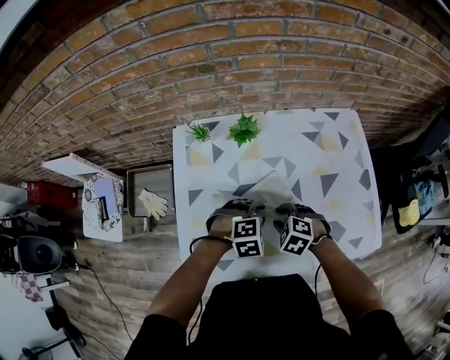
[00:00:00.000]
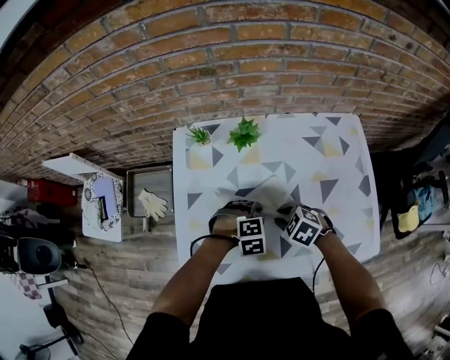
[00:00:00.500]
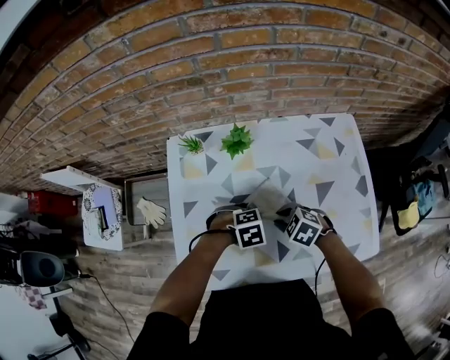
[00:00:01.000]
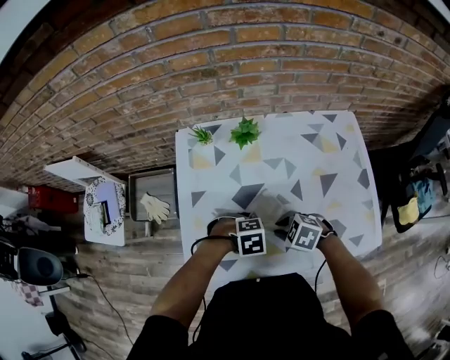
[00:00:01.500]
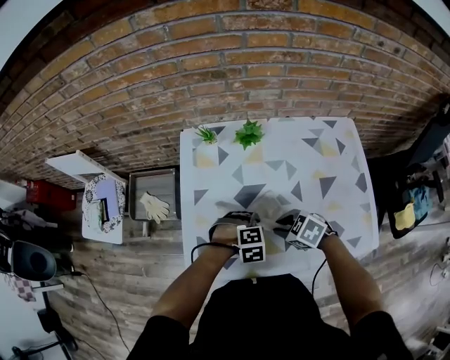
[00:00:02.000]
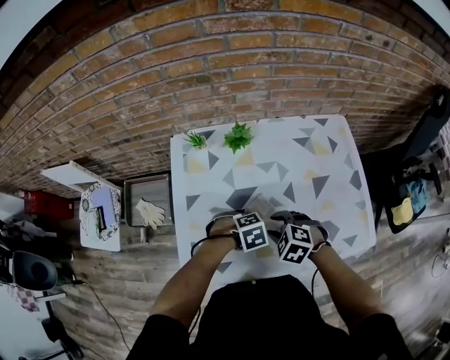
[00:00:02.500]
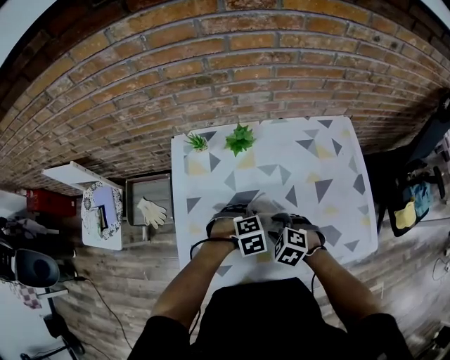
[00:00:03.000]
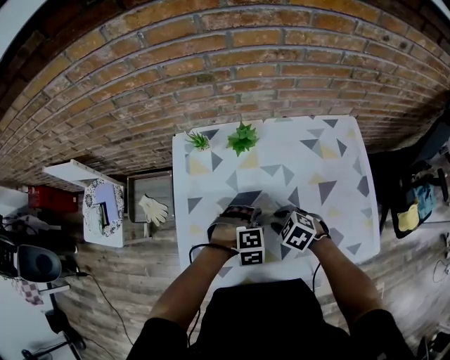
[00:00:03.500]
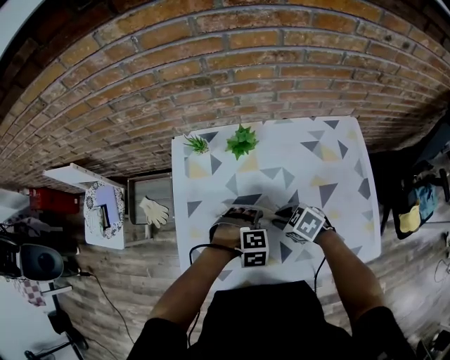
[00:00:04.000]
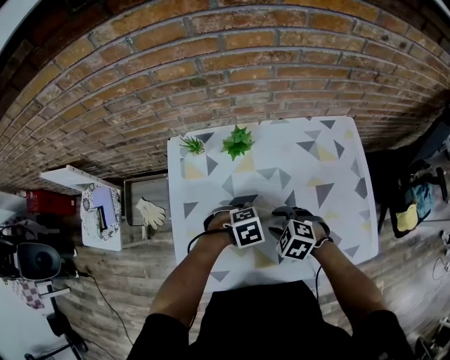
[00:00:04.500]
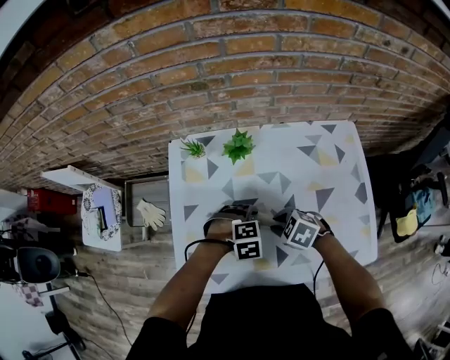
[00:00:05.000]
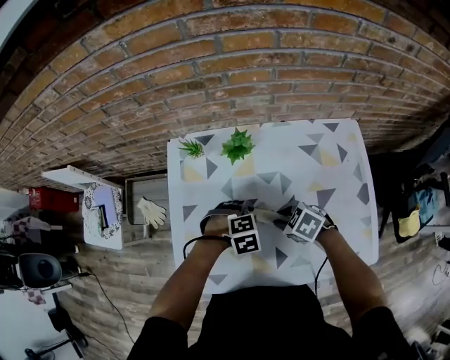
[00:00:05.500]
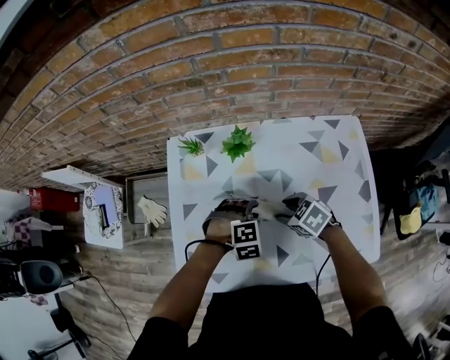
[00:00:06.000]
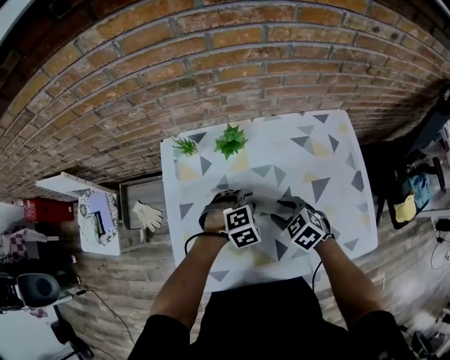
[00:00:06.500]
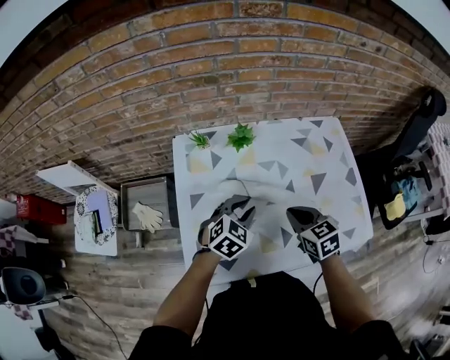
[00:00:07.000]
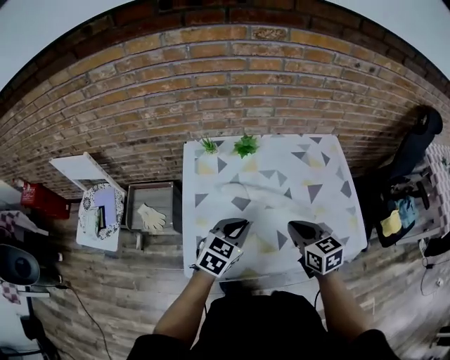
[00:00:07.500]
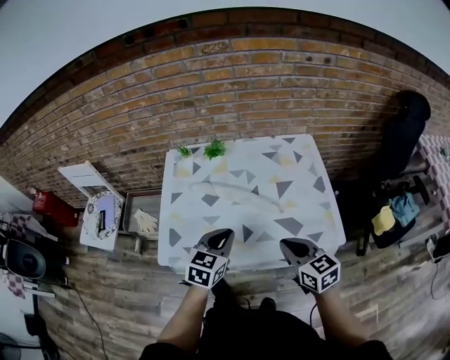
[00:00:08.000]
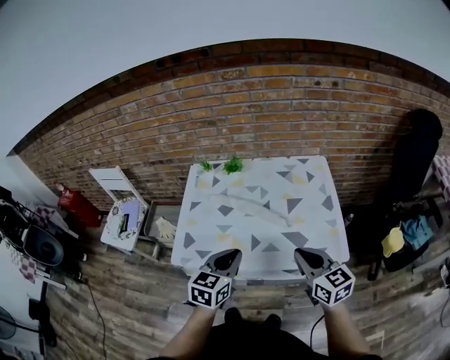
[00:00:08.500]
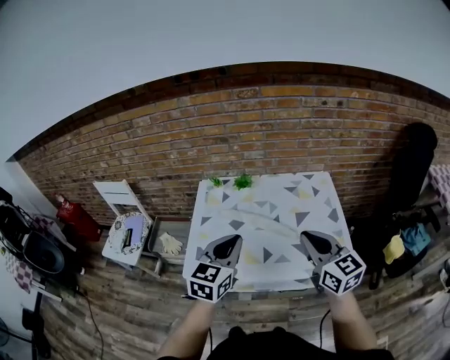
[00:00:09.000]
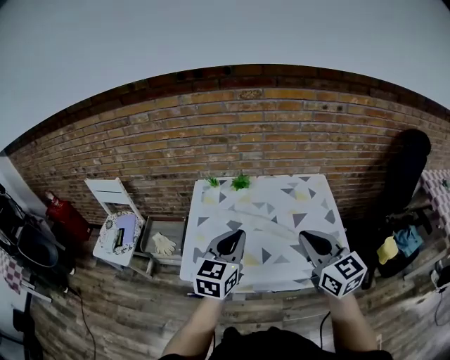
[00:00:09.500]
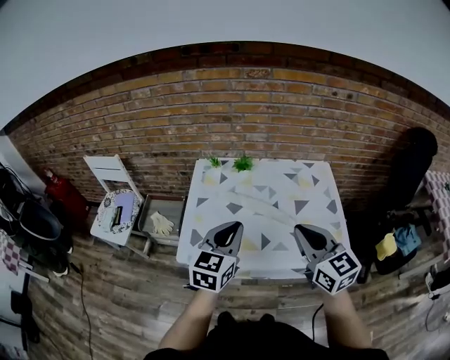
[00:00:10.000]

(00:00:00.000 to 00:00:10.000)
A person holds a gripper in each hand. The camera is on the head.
00:00:00.000 - 00:00:02.000: The right gripper rotates some 20 degrees. Meanwhile the left gripper ends up about 5 cm from where it was.
00:00:02.000 - 00:00:04.000: The left gripper opens up. Meanwhile the right gripper moves approximately 5 cm, and opens, then closes again.
00:00:04.000 - 00:00:06.000: The right gripper opens its fingers. Meanwhile the left gripper moves about 5 cm.
00:00:06.000 - 00:00:08.000: The left gripper shifts by roughly 25 cm, twists about 60 degrees counterclockwise, seen from behind, and closes its fingers. The right gripper changes place by about 30 cm, tilts its fingers approximately 30 degrees upward, and closes.
00:00:08.000 - 00:00:10.000: The right gripper shifts some 15 cm upward; the left gripper moves upward and to the left, some 15 cm.

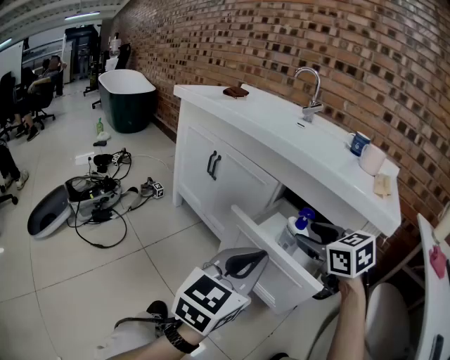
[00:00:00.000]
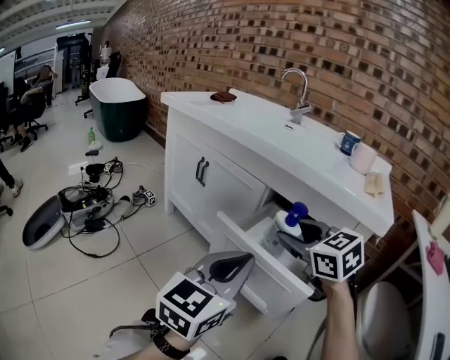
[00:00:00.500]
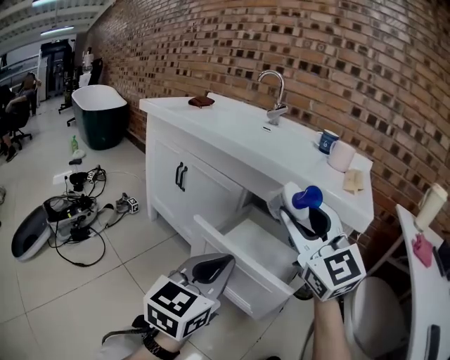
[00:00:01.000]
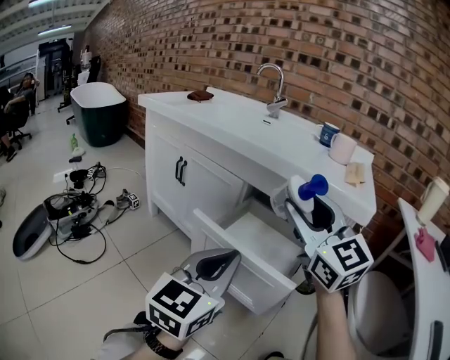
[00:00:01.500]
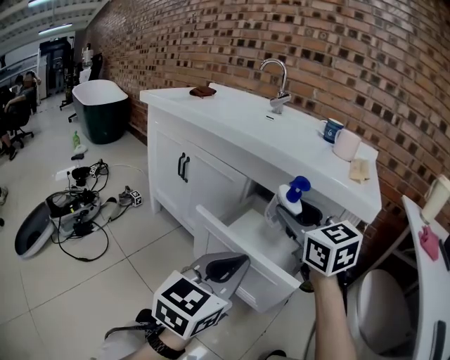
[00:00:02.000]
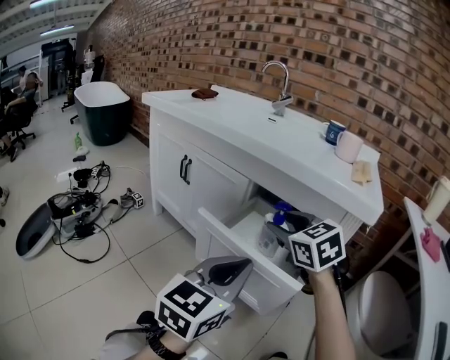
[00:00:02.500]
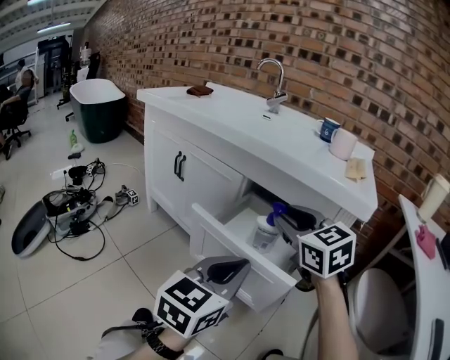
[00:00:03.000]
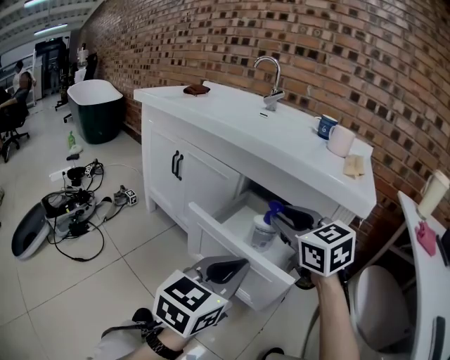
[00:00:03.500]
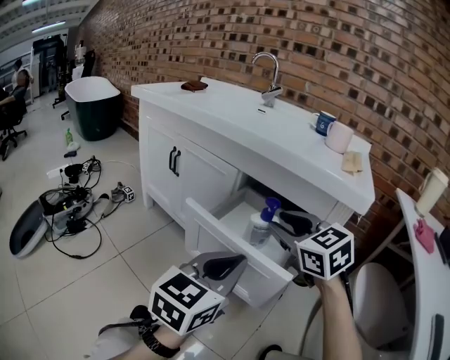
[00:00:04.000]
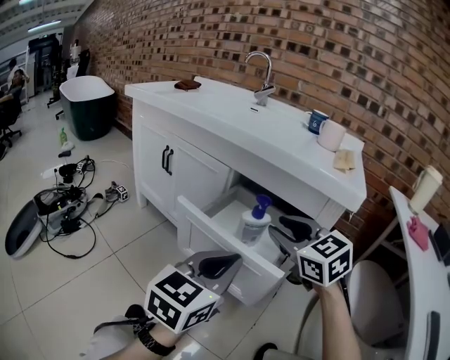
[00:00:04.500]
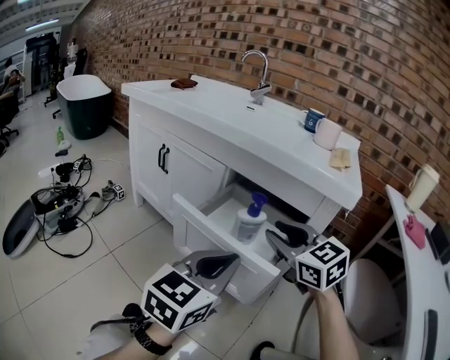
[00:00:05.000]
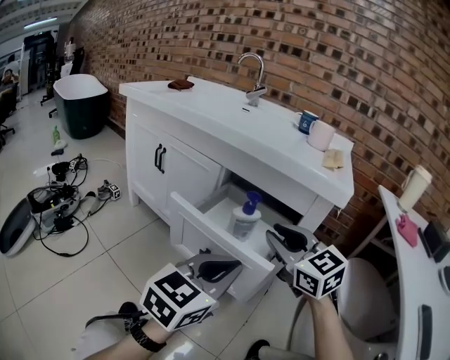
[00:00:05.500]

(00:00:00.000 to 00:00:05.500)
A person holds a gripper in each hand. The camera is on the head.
00:00:00.000 - 00:00:02.000: The right gripper heads upward, covering roughly 5 cm, and rotates some 20 degrees.
00:00:03.500 - 00:00:05.500: The right gripper moves backward, some 5 cm.

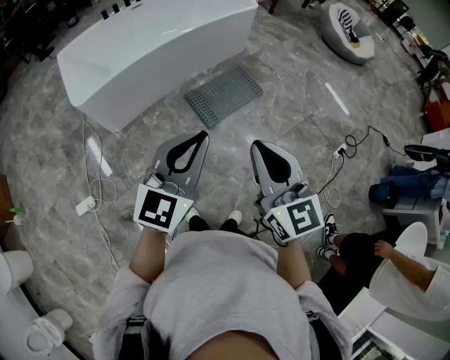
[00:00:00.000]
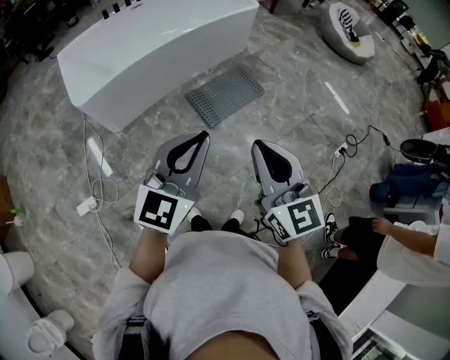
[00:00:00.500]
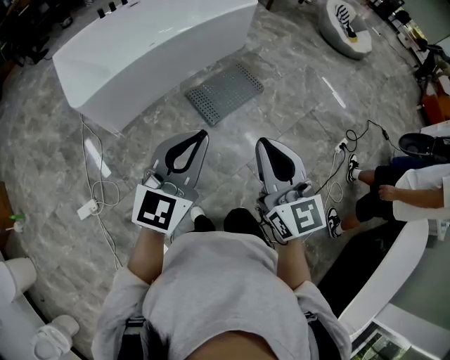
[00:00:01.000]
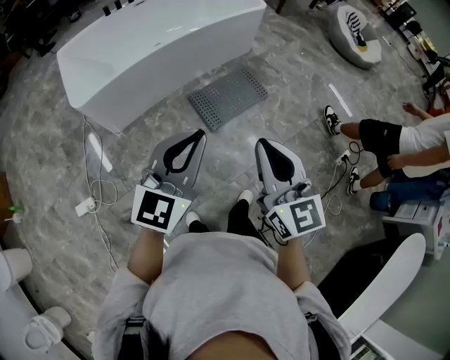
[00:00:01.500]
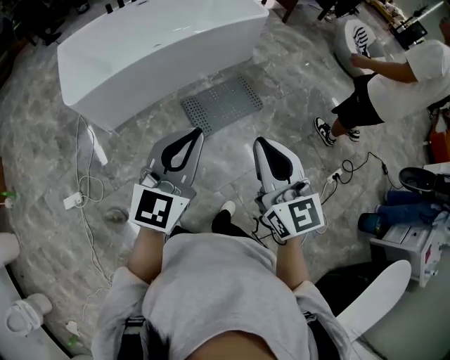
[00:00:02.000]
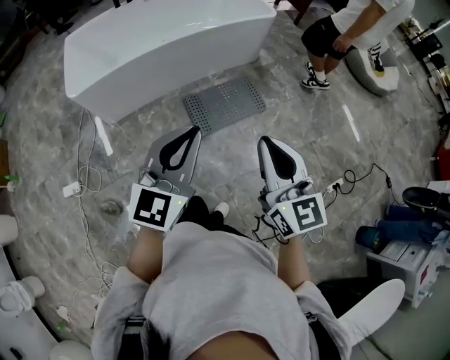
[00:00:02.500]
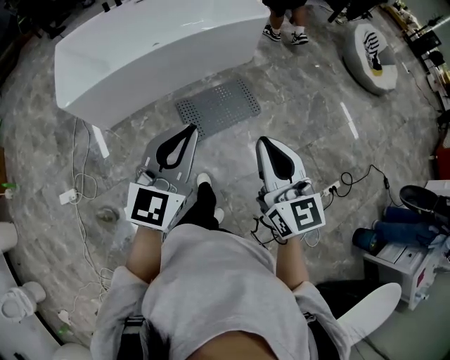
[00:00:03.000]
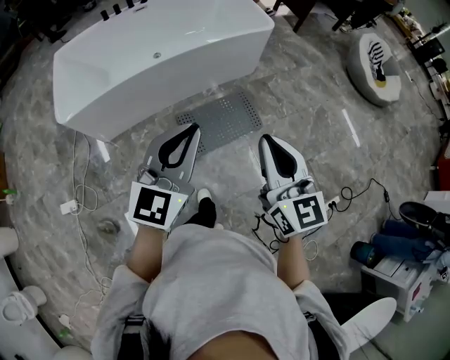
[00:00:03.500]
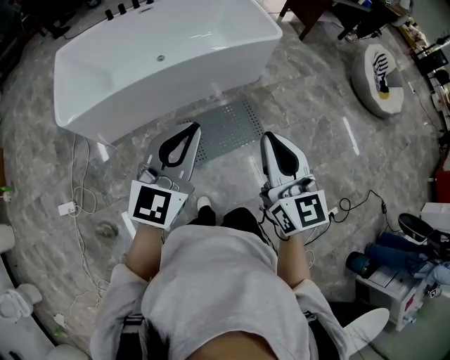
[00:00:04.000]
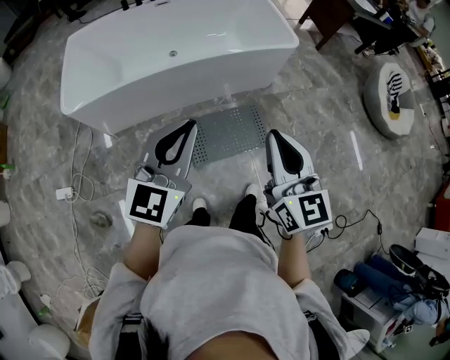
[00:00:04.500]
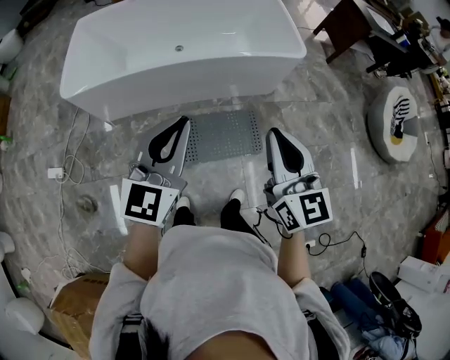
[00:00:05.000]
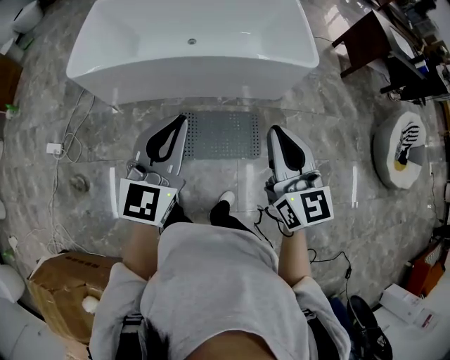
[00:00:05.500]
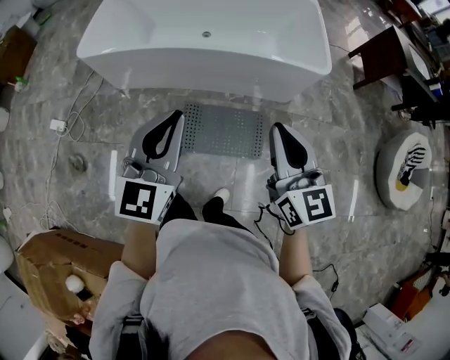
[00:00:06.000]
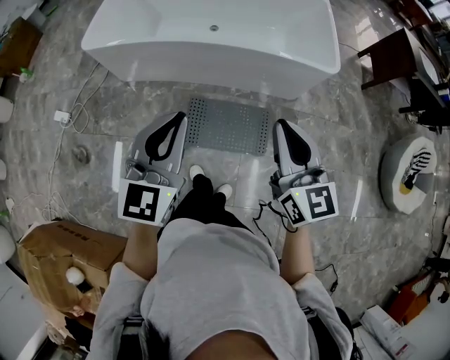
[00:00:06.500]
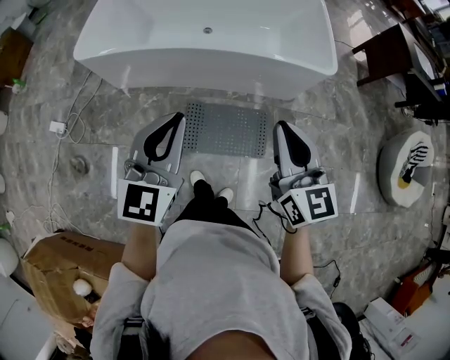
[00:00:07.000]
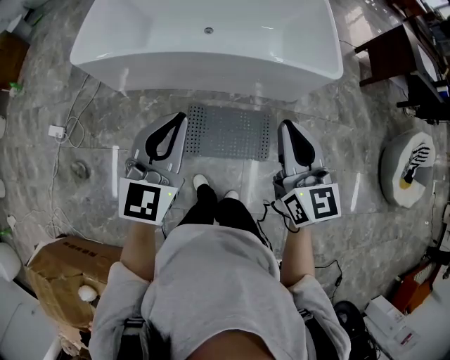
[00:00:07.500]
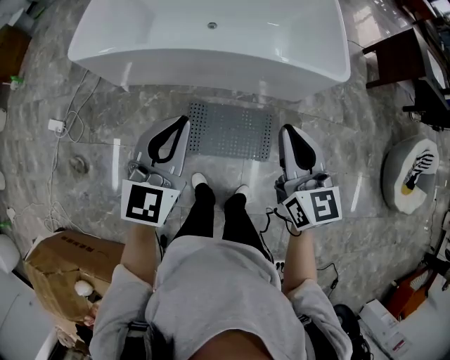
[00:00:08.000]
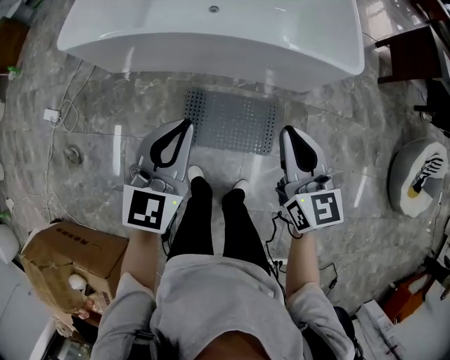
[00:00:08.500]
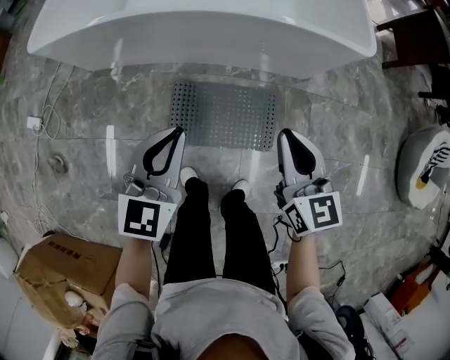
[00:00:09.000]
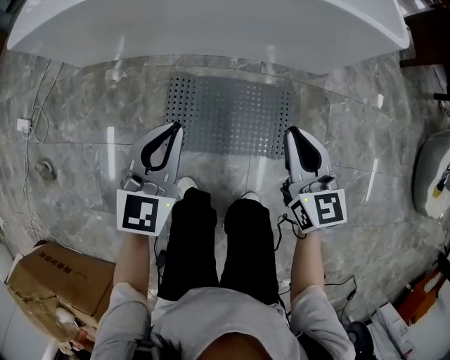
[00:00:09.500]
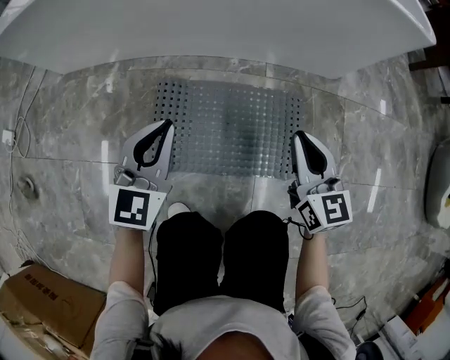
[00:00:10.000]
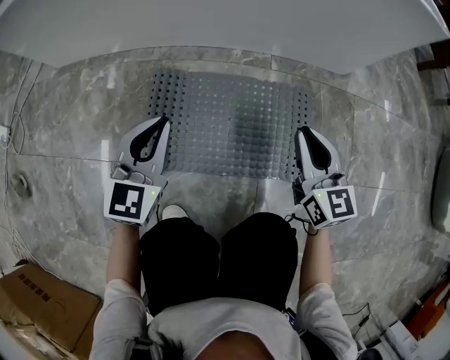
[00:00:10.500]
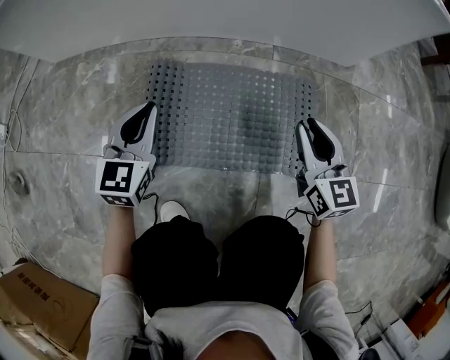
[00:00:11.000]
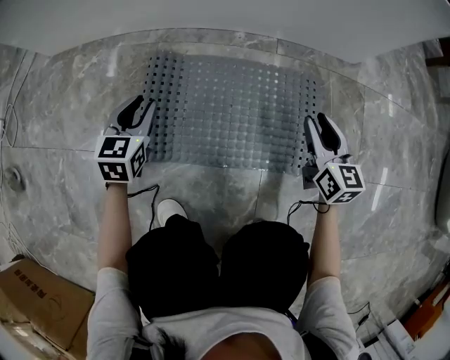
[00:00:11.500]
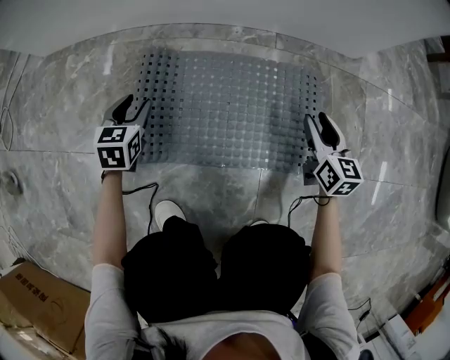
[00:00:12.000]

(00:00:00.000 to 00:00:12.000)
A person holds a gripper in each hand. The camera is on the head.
00:00:00.000 - 00:00:02.000: The grippers both shift forward and to the right by about 15 cm.
00:00:02.000 - 00:00:04.000: The grippers both shift forward by some 25 cm.
00:00:04.000 - 00:00:06.000: The left gripper changes place by about 15 cm, and rotates about 30 degrees. The right gripper ends up approximately 25 cm from where it was, and rotates some 30 degrees.
00:00:06.000 - 00:00:08.000: The grippers both shift forward and downward by approximately 15 cm.
00:00:08.000 - 00:00:10.000: The two grippers go roughly 60 cm downward.
00:00:10.000 - 00:00:12.000: The two grippers go about 25 cm downward. The left gripper rotates roughly 30 degrees, and opens up. The right gripper opens.
